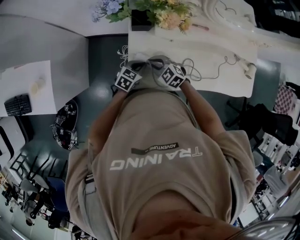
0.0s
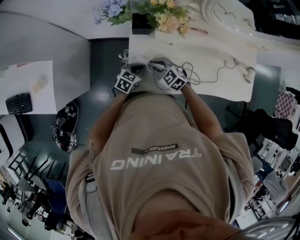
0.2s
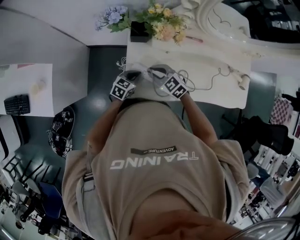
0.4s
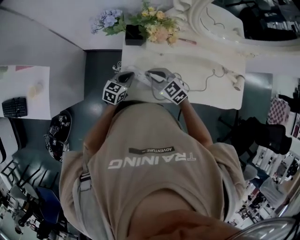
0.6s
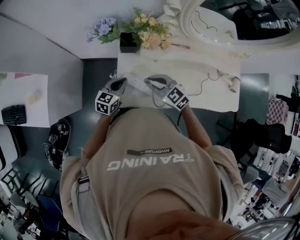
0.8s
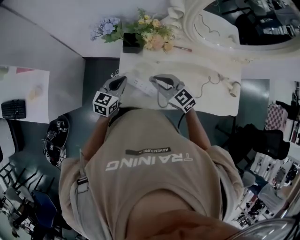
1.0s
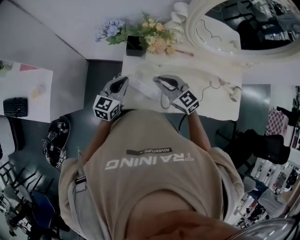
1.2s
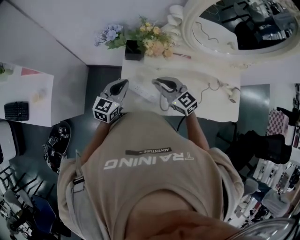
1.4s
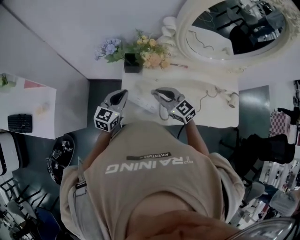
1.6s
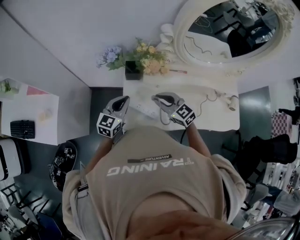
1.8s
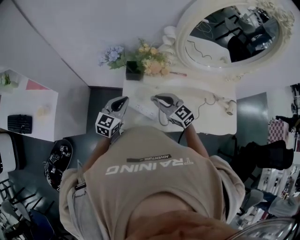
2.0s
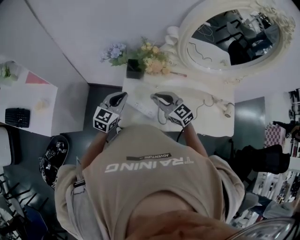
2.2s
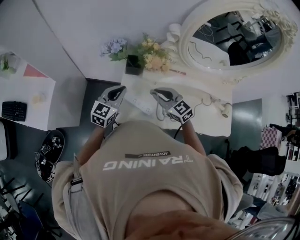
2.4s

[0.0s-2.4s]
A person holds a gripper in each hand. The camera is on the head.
0.0s to 1.2s: The right gripper is displaced upward and to the right by about 20 cm, and changes its angle by some 20 degrees; the left gripper shifts some 20 cm upward, and swivels about 30 degrees.
1.2s to 2.4s: The left gripper goes about 5 cm upward.

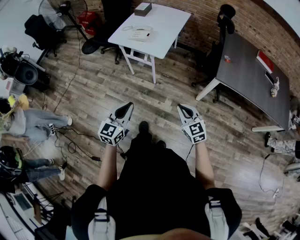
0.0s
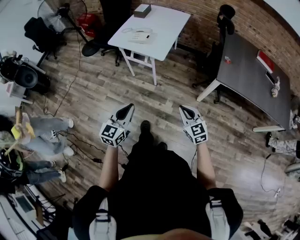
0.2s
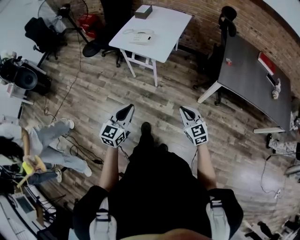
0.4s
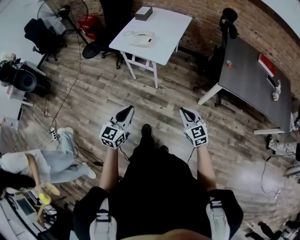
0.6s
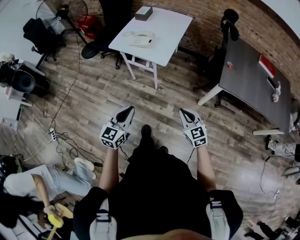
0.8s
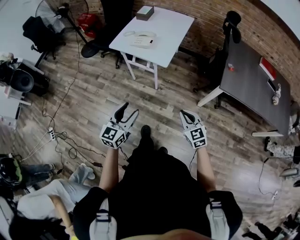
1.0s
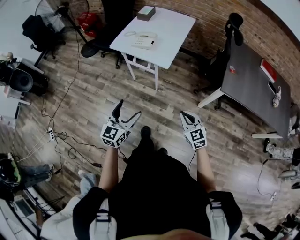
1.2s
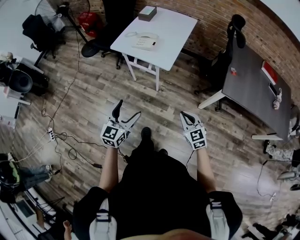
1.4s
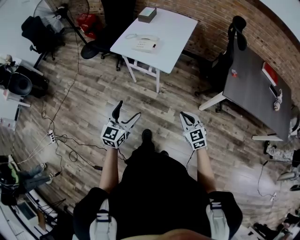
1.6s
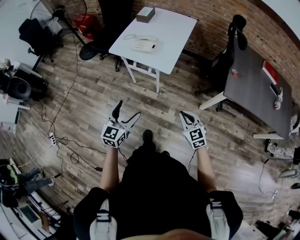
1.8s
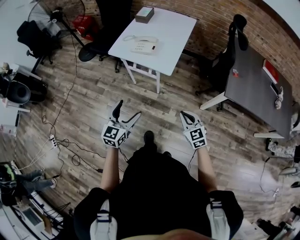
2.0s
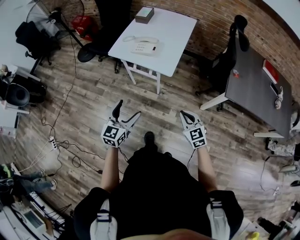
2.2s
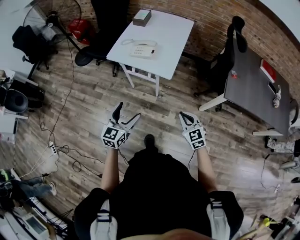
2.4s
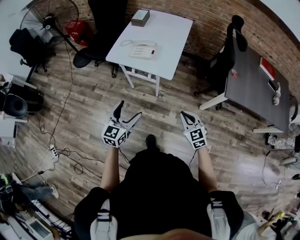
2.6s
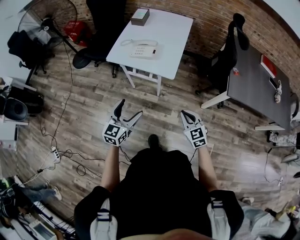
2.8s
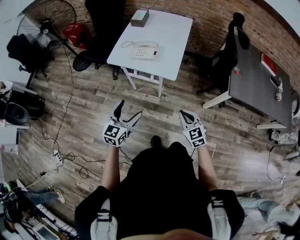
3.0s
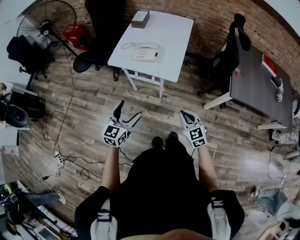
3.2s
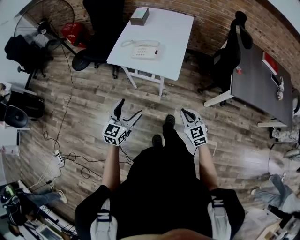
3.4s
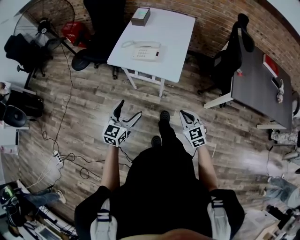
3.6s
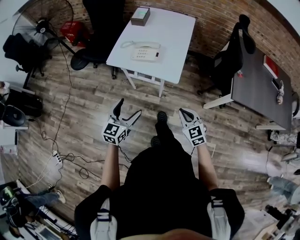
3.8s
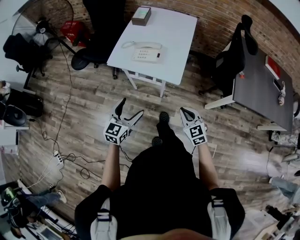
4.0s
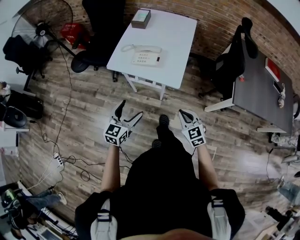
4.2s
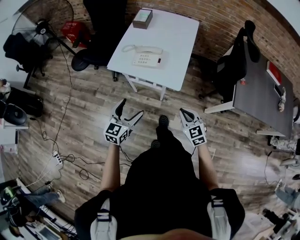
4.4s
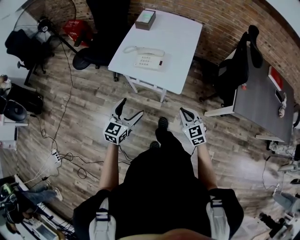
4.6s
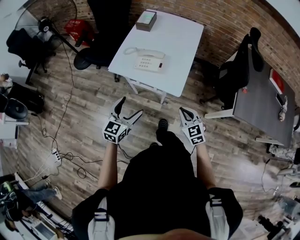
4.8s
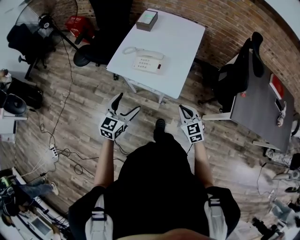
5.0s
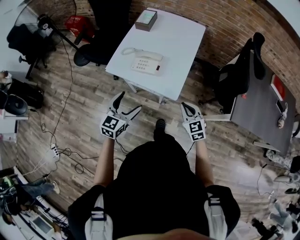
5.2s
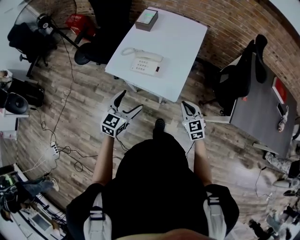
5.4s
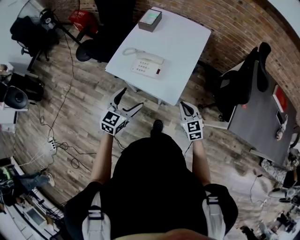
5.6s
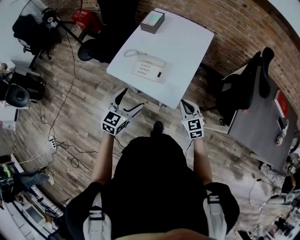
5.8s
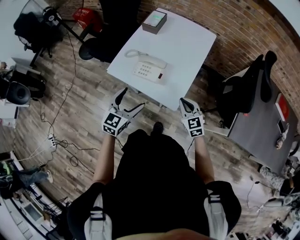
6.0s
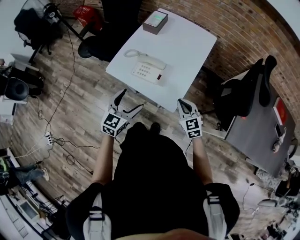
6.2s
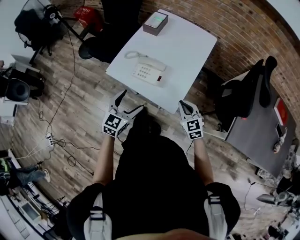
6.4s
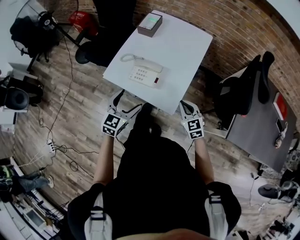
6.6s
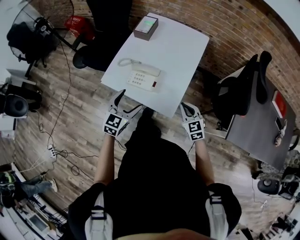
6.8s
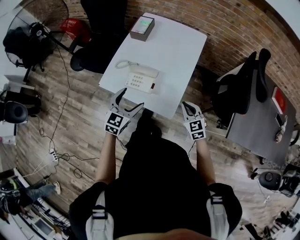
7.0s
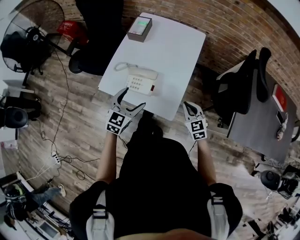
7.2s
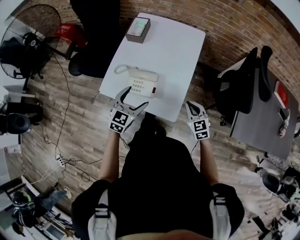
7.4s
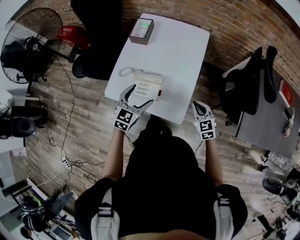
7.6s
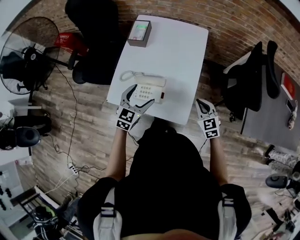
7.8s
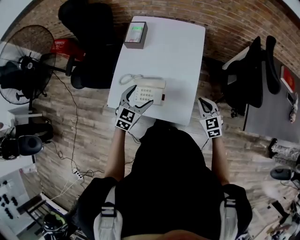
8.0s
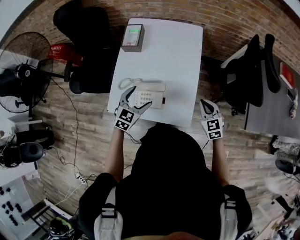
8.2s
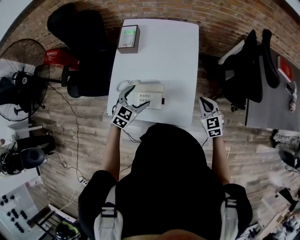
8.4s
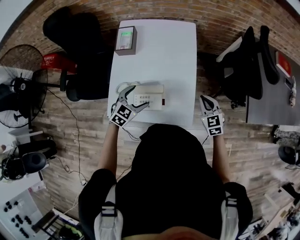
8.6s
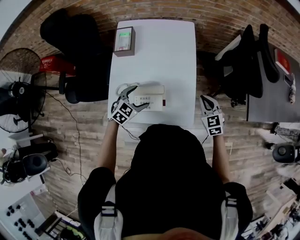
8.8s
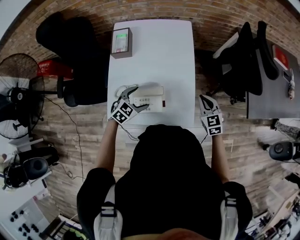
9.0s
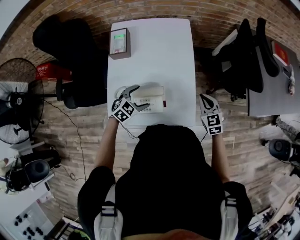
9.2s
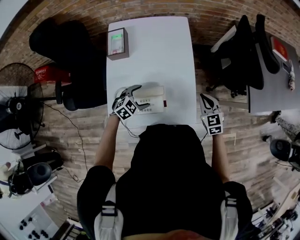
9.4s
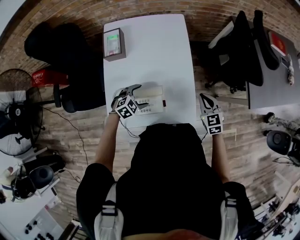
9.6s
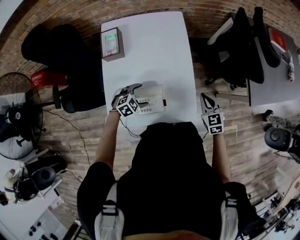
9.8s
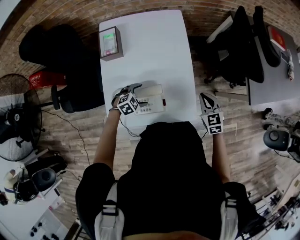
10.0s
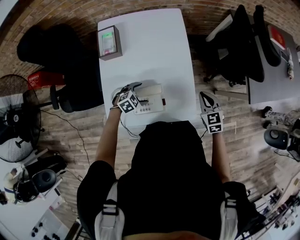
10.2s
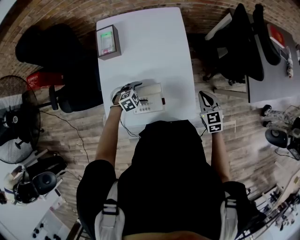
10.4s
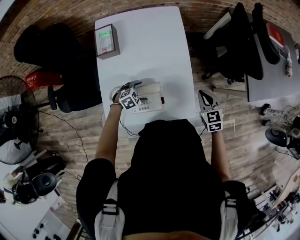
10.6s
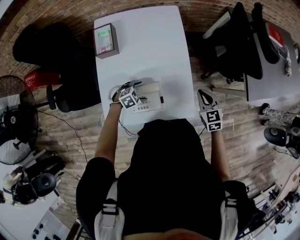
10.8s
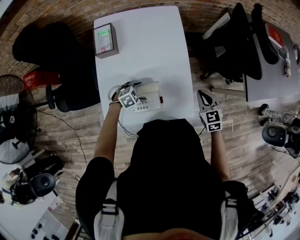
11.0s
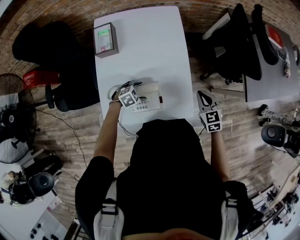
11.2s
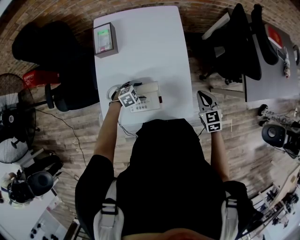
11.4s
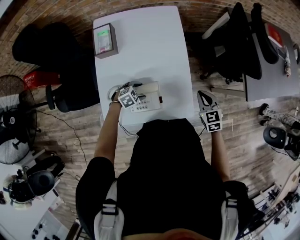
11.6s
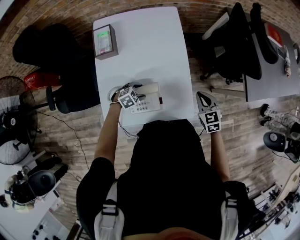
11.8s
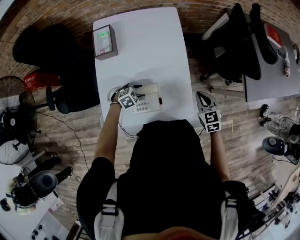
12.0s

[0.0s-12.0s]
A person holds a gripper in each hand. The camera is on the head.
0.0s to 1.6s: The left gripper goes about 15 cm forward and to the left, and opens its fingers. Meanwhile the right gripper is displaced forward by roughly 10 cm.
1.6s to 3.0s: The right gripper is displaced to the left and forward by some 15 cm. Meanwhile the left gripper shifts approximately 15 cm forward and to the left.
3.0s to 4.4s: Both grippers travel together forward, about 10 cm.
4.4s to 6.0s: Both grippers travel together forward, approximately 20 cm.
6.0s to 7.6s: The right gripper moves forward, approximately 10 cm; the left gripper goes approximately 15 cm forward.
7.6s to 9.0s: The right gripper changes place by approximately 5 cm. Meanwhile the left gripper shifts some 10 cm downward, and changes its angle by some 40 degrees.
9.0s to 10.4s: The left gripper heads downward, covering some 10 cm, and rotates about 30 degrees.
10.4s to 12.0s: The left gripper closes up.

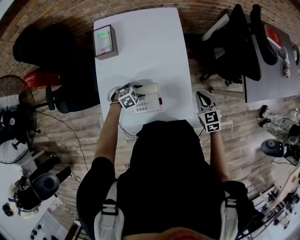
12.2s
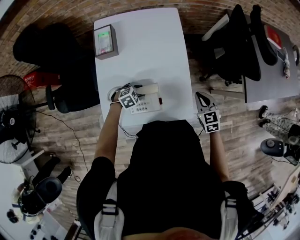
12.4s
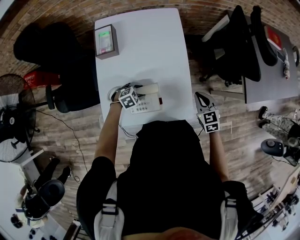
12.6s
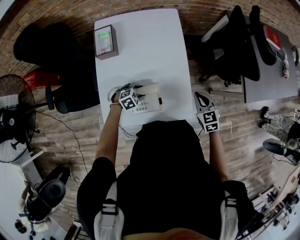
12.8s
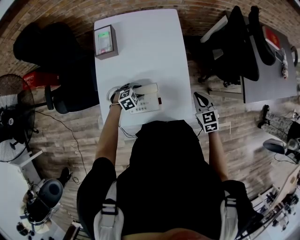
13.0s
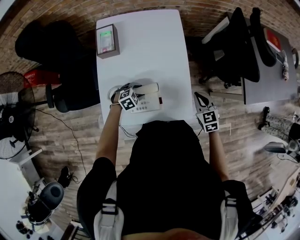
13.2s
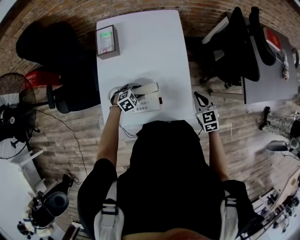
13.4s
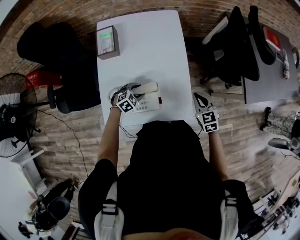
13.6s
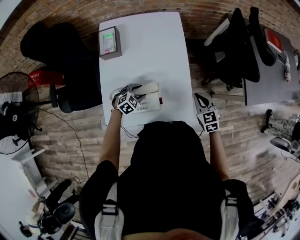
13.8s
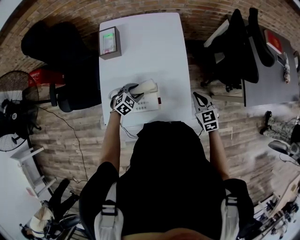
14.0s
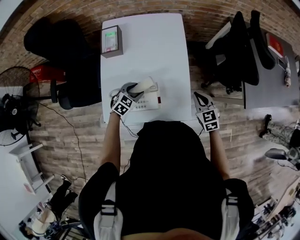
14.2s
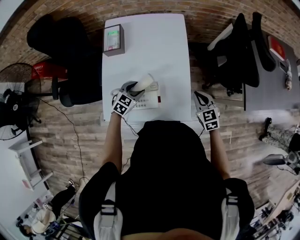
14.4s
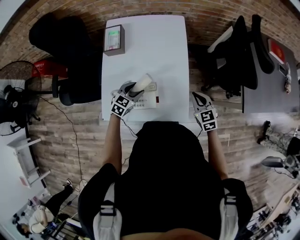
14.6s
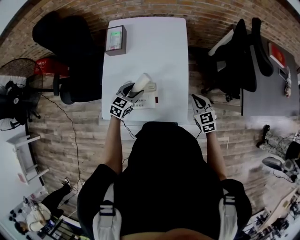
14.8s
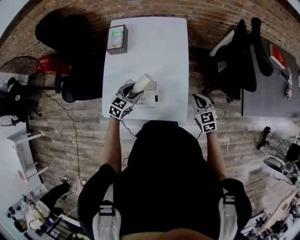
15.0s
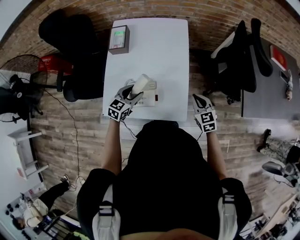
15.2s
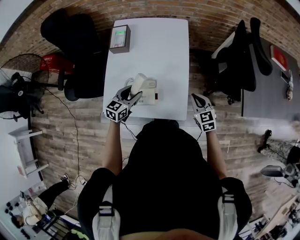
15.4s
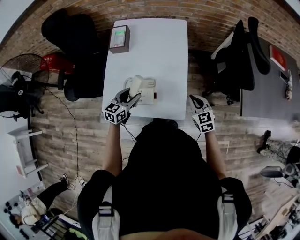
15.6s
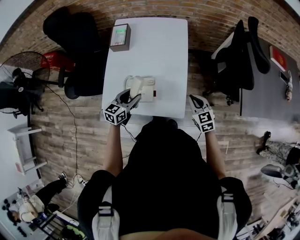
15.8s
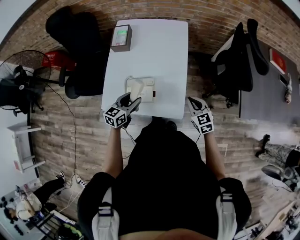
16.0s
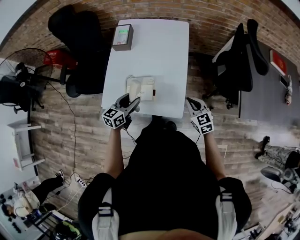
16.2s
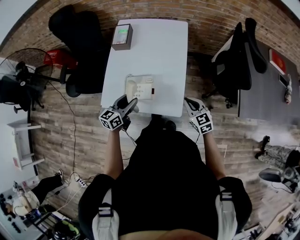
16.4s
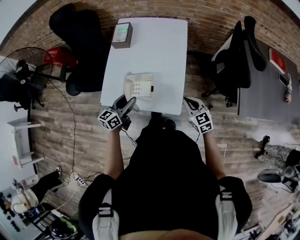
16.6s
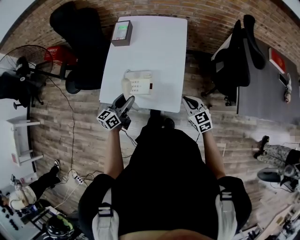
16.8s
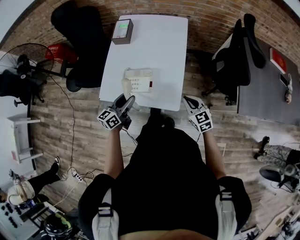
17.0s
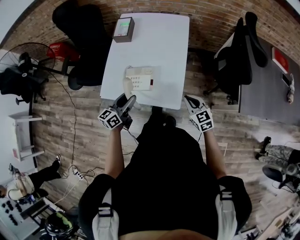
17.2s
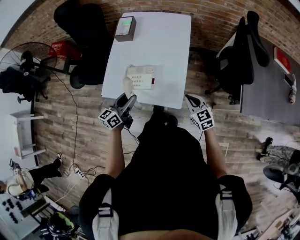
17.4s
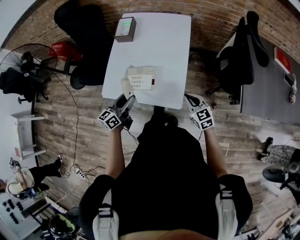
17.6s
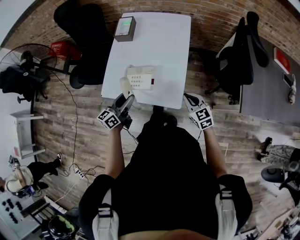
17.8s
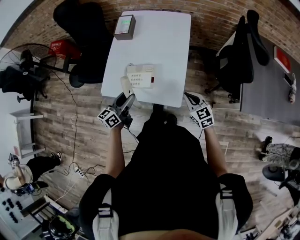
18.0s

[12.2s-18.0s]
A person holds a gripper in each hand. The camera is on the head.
12.2s to 13.6s: The grippers make only small movements.
13.6s to 15.0s: The left gripper heads upward, covering some 10 cm, and rotates some 40 degrees.
15.0s to 16.6s: The right gripper is displaced backward by some 10 cm, while the left gripper travels backward and upward by about 15 cm, and rotates approximately 40 degrees.
16.6s to 18.0s: The grippers make only small movements.

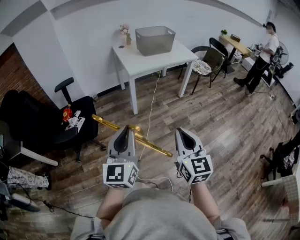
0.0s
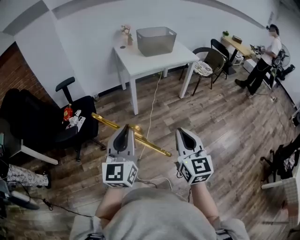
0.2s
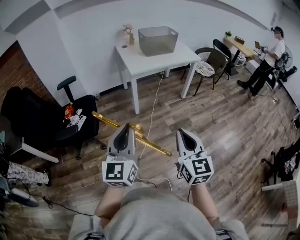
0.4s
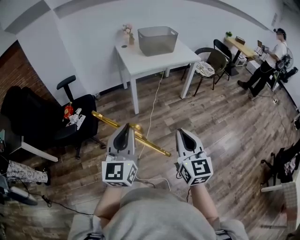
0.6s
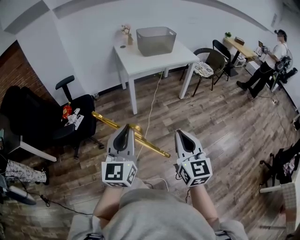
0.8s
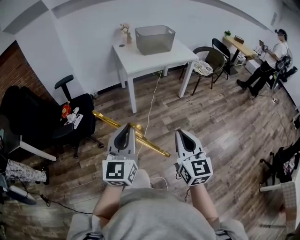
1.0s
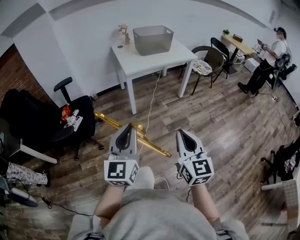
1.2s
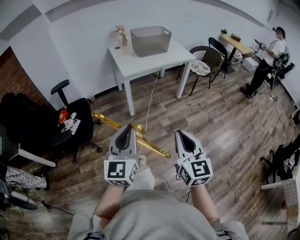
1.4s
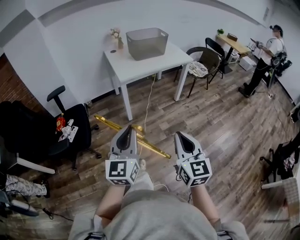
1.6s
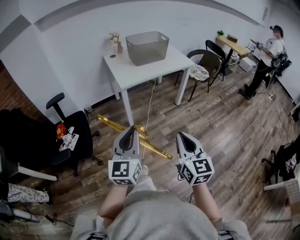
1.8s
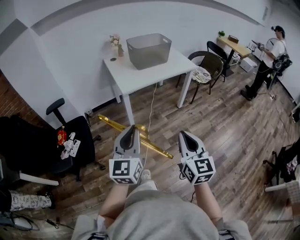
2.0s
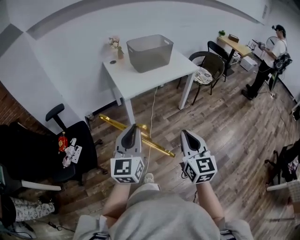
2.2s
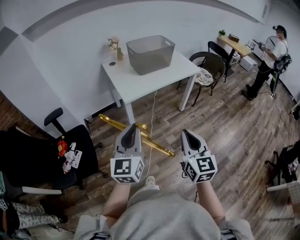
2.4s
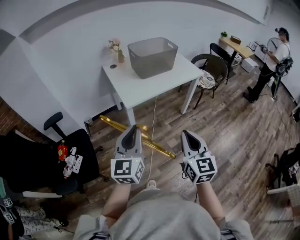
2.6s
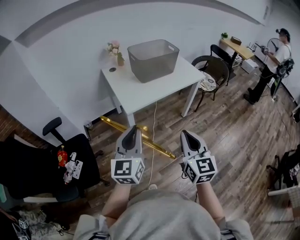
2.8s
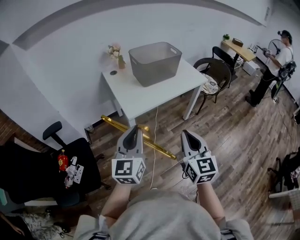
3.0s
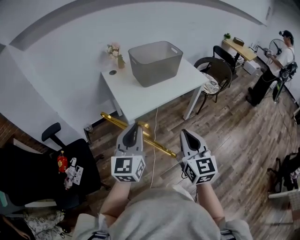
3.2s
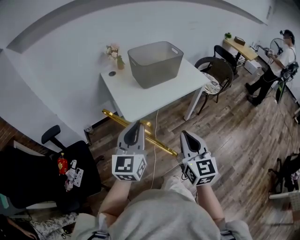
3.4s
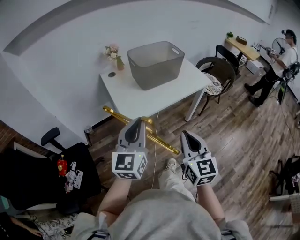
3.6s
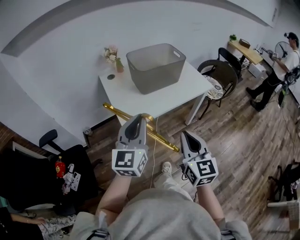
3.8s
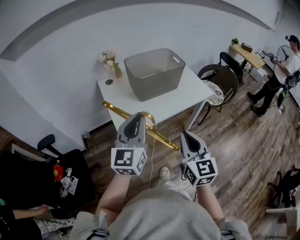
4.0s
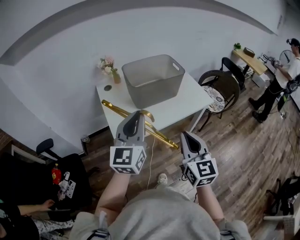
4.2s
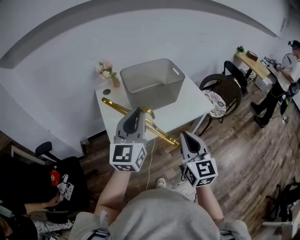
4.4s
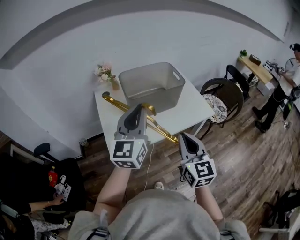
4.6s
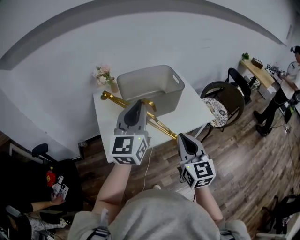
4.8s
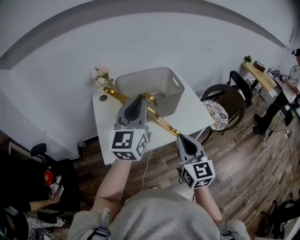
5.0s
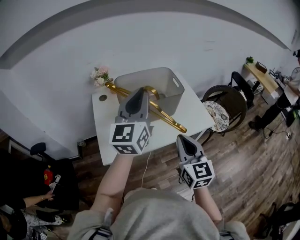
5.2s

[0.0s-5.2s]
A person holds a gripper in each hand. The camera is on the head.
0.0s to 1.8s: Both grippers travel together forward and to the right, roughly 15 cm.
1.8s to 3.4s: The two grippers go roughly 30 cm forward.
3.4s to 5.2s: Both grippers move forward and to the right, some 35 cm.
